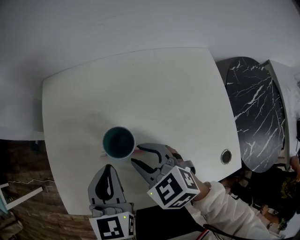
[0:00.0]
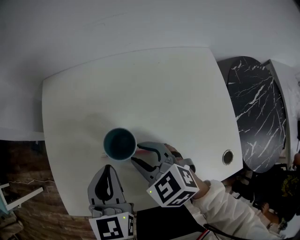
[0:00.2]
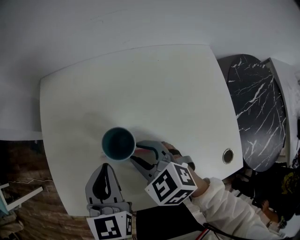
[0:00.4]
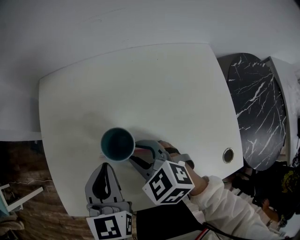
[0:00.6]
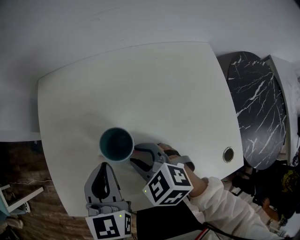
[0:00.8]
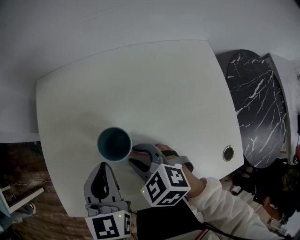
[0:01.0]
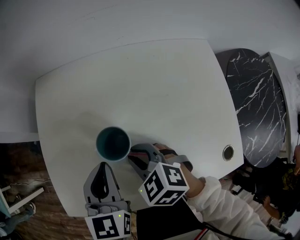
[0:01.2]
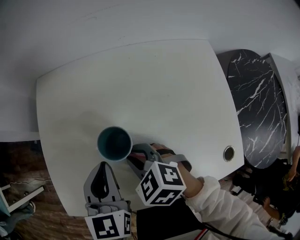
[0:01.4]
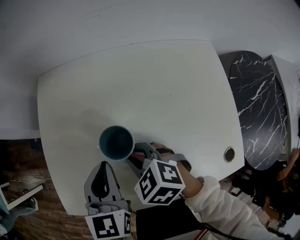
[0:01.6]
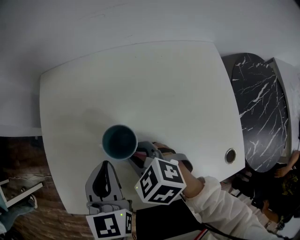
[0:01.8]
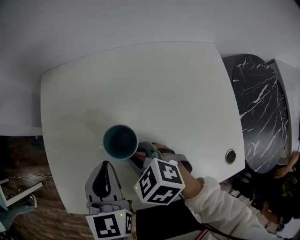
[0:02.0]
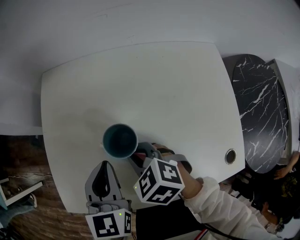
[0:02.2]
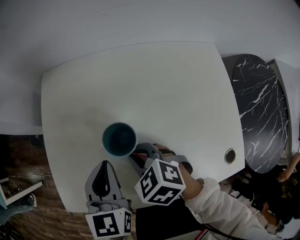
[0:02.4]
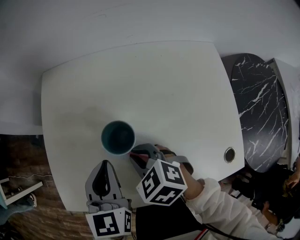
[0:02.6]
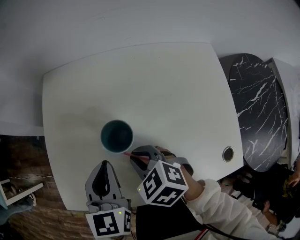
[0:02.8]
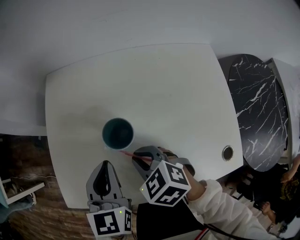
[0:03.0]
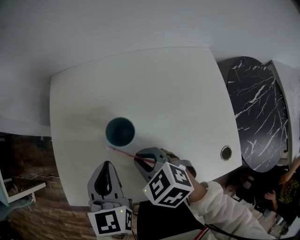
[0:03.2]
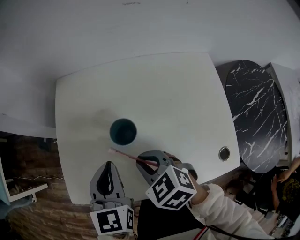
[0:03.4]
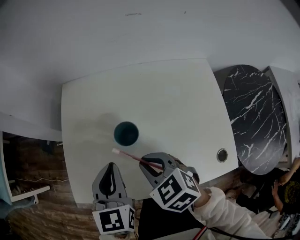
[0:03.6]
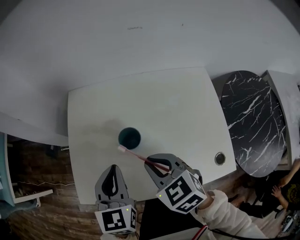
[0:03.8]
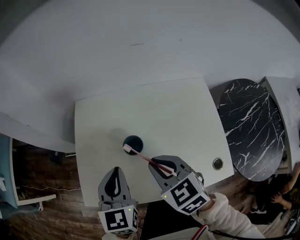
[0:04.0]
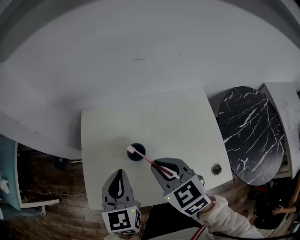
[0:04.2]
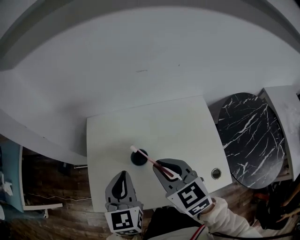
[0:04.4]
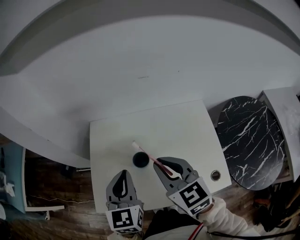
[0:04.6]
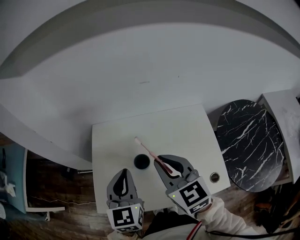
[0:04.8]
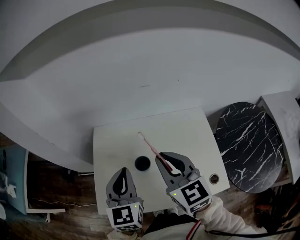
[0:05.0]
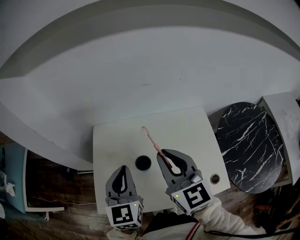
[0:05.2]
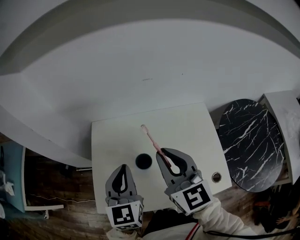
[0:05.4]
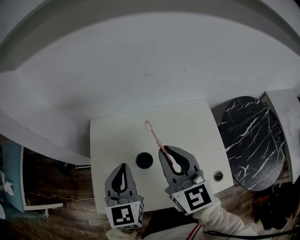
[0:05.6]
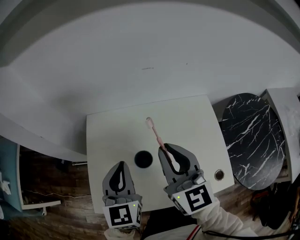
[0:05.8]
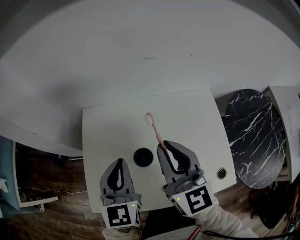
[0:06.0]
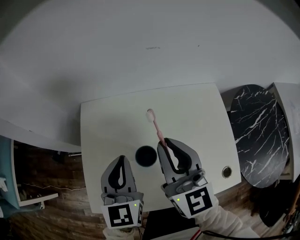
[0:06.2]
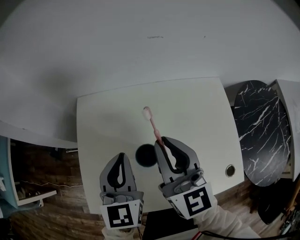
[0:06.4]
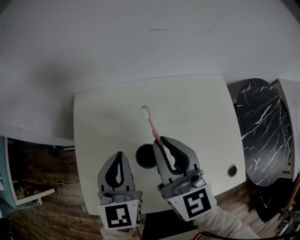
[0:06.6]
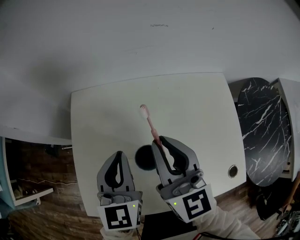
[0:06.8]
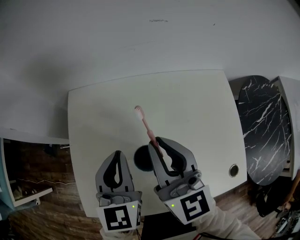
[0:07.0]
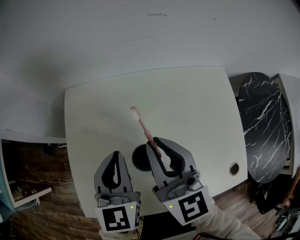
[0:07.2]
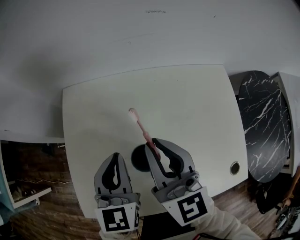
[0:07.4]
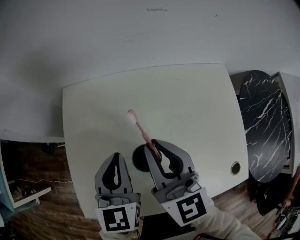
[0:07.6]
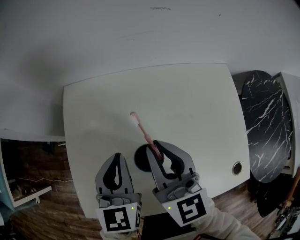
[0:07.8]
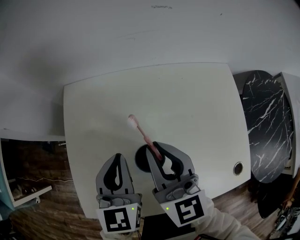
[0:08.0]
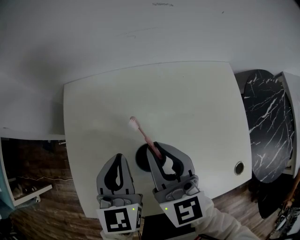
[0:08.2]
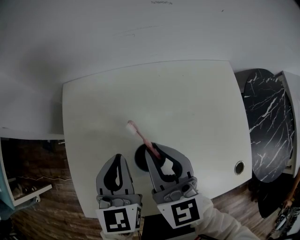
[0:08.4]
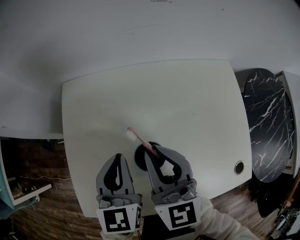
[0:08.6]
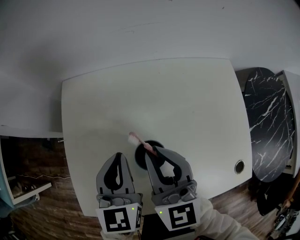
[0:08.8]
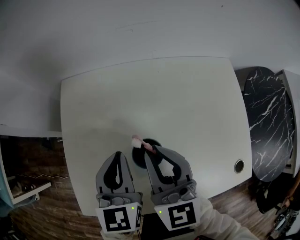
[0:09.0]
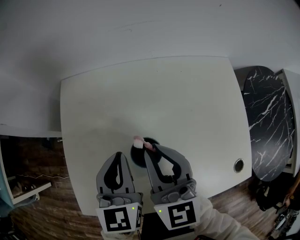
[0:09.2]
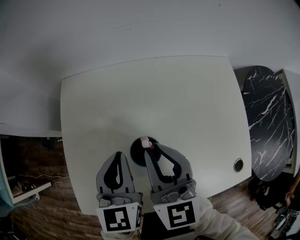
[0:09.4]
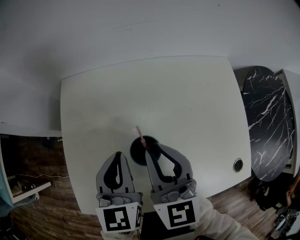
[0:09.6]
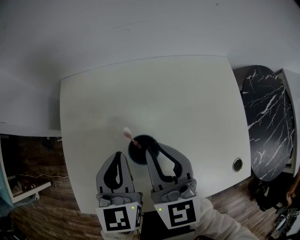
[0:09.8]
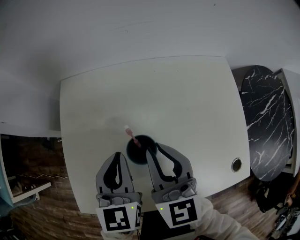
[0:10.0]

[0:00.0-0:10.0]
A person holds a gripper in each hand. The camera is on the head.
0:00.0 to 0:01.4: The right gripper changes place by some 5 cm.
0:01.4 to 0:02.8: The grippers make only small movements.
0:02.8 to 0:04.2: The grippers both shift upward by roughly 20 cm. The right gripper changes its angle by roughly 30 degrees.
0:04.2 to 0:05.8: The left gripper goes roughly 5 cm forward. Meanwhile the right gripper goes about 10 cm upward and forward, and changes its angle by some 30 degrees.
0:05.8 to 0:07.2: The right gripper is displaced downward and to the left by approximately 15 cm, while the left gripper heads downward, covering approximately 10 cm.
0:07.2 to 0:08.6: The right gripper changes place by about 5 cm.
0:08.6 to 0:10.0: The grippers move only a little.

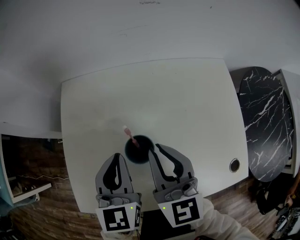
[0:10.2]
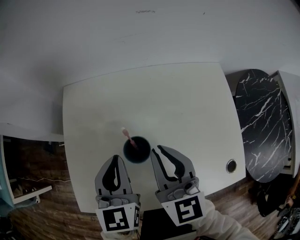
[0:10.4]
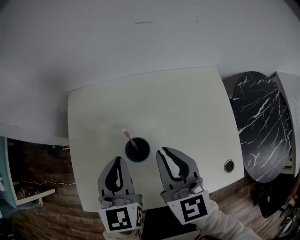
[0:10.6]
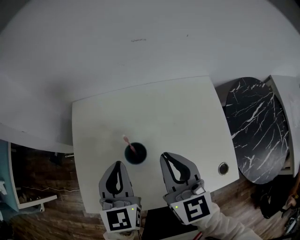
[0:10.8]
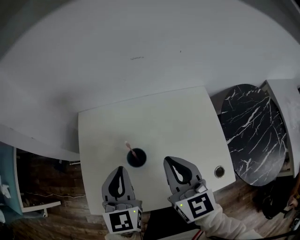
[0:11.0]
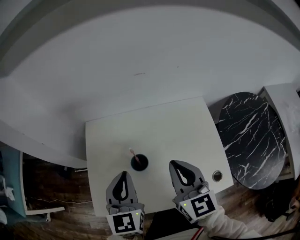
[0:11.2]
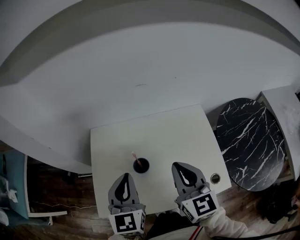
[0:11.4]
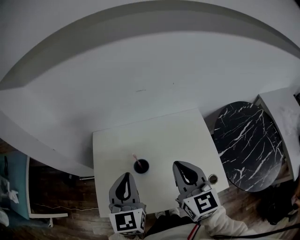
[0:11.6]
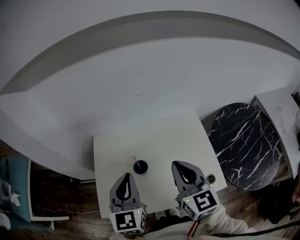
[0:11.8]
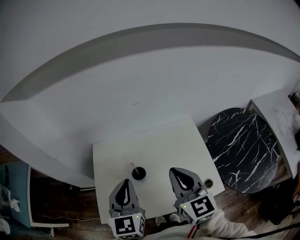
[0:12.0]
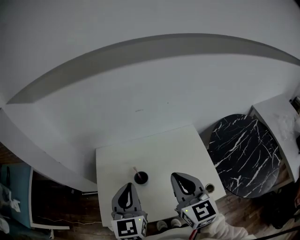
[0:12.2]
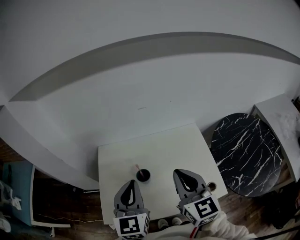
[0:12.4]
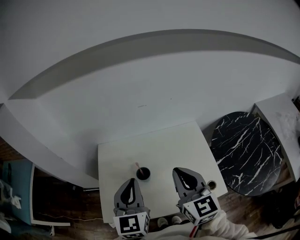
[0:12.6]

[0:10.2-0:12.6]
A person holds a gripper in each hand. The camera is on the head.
0:10.2 to 0:11.4: The left gripper heads upward, covering roughly 20 cm, while the right gripper heads upward and to the right, covering some 20 cm.
0:11.4 to 0:12.6: The two grippers go approximately 5 cm upward.

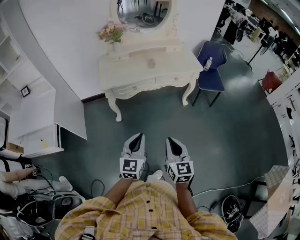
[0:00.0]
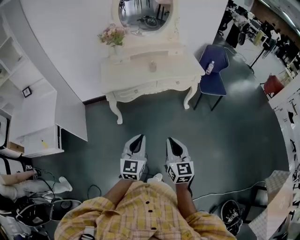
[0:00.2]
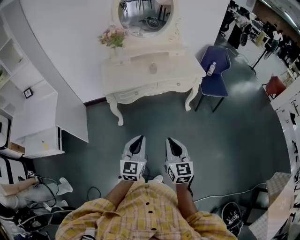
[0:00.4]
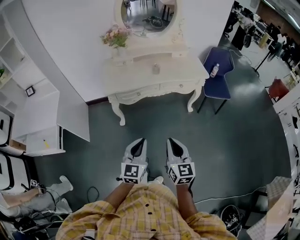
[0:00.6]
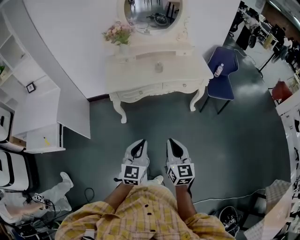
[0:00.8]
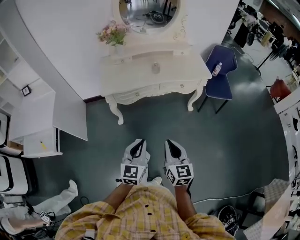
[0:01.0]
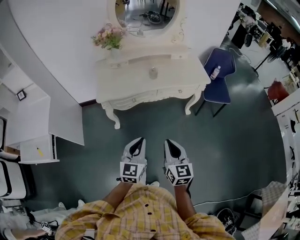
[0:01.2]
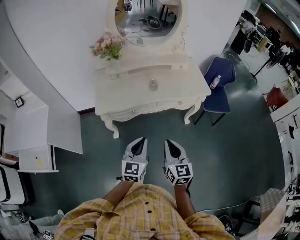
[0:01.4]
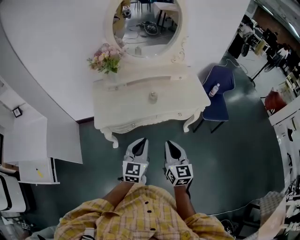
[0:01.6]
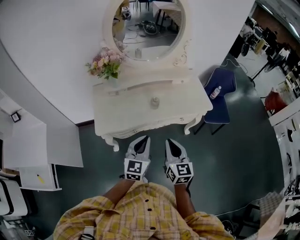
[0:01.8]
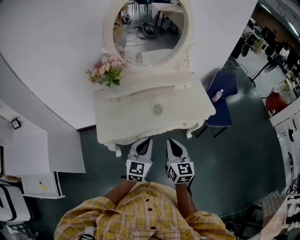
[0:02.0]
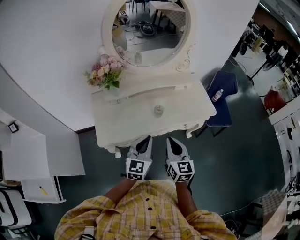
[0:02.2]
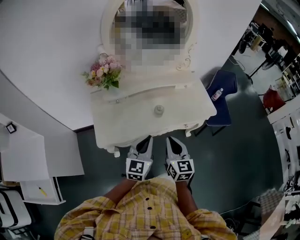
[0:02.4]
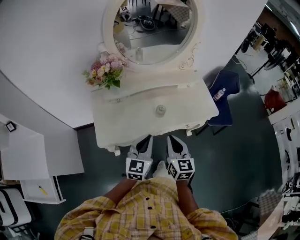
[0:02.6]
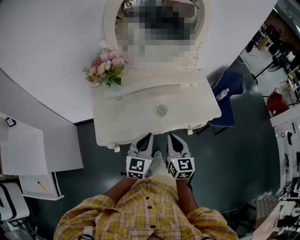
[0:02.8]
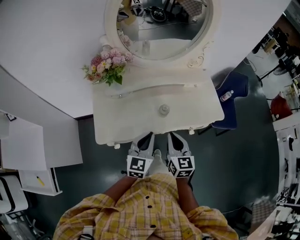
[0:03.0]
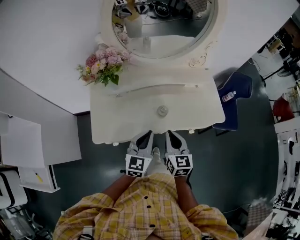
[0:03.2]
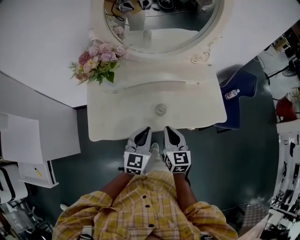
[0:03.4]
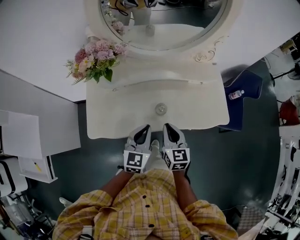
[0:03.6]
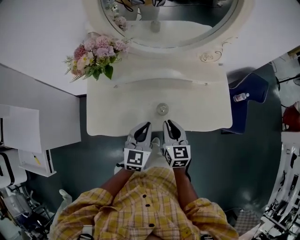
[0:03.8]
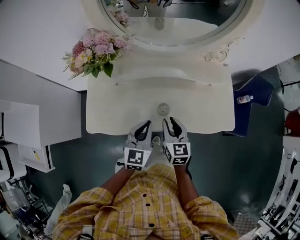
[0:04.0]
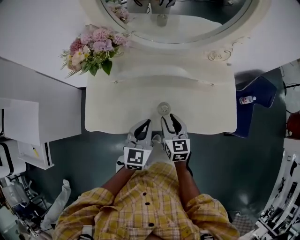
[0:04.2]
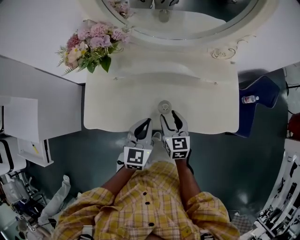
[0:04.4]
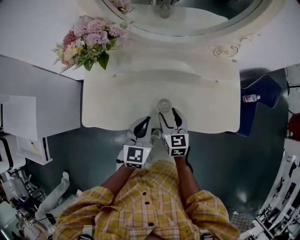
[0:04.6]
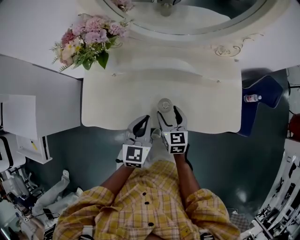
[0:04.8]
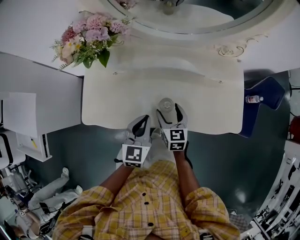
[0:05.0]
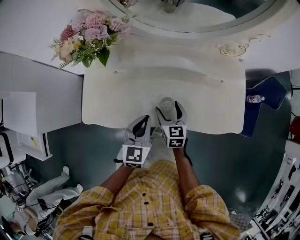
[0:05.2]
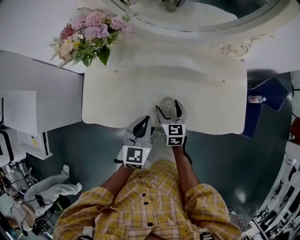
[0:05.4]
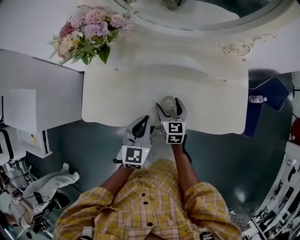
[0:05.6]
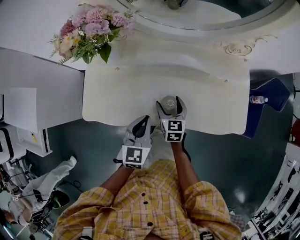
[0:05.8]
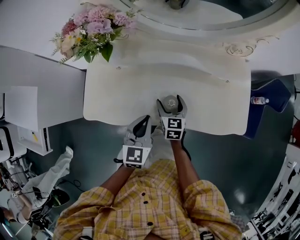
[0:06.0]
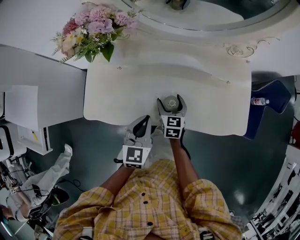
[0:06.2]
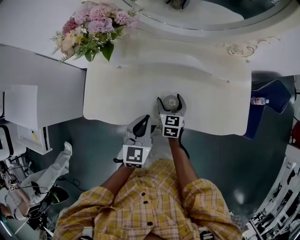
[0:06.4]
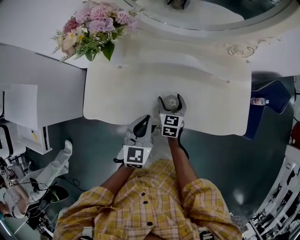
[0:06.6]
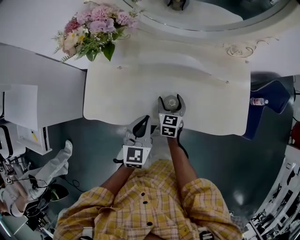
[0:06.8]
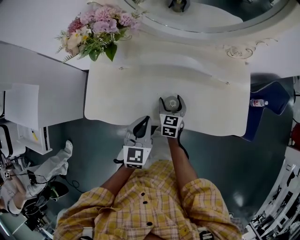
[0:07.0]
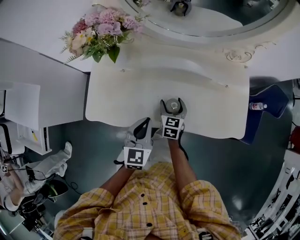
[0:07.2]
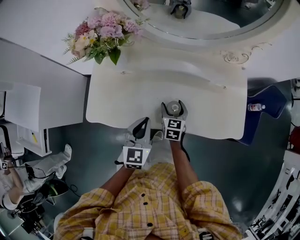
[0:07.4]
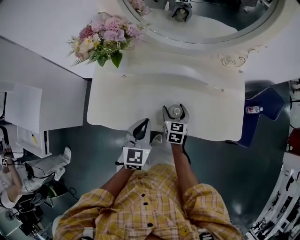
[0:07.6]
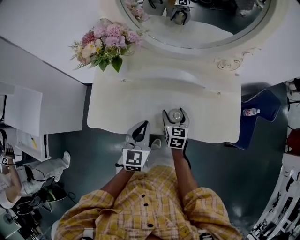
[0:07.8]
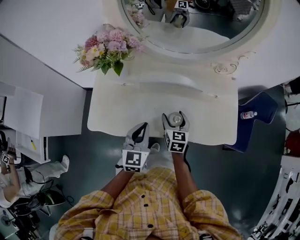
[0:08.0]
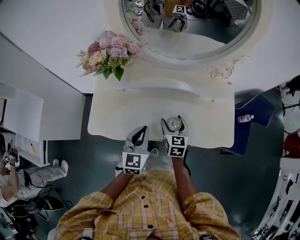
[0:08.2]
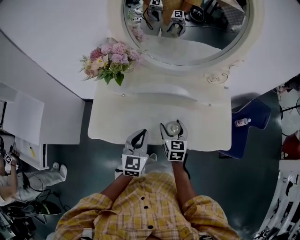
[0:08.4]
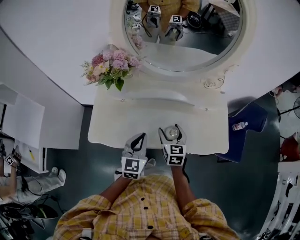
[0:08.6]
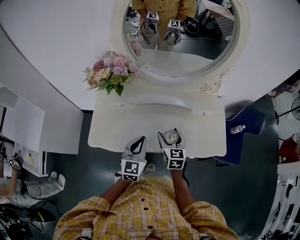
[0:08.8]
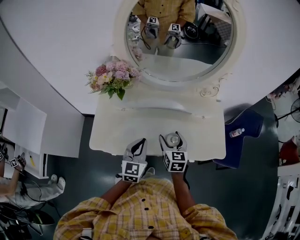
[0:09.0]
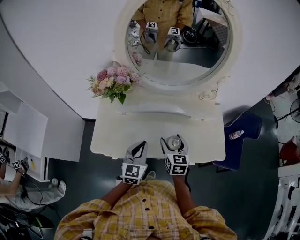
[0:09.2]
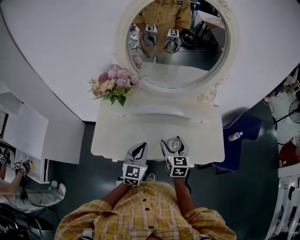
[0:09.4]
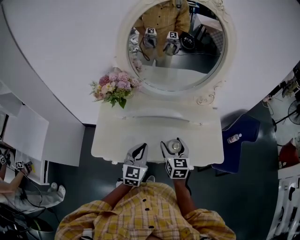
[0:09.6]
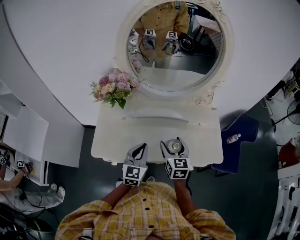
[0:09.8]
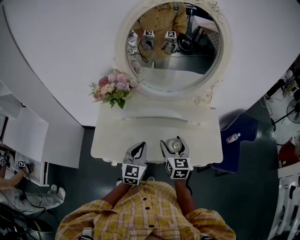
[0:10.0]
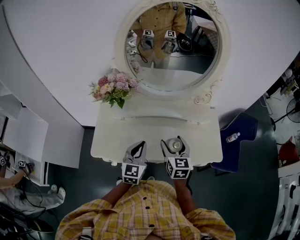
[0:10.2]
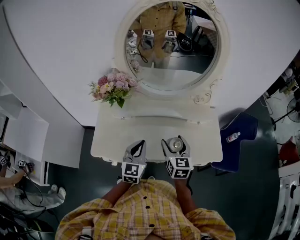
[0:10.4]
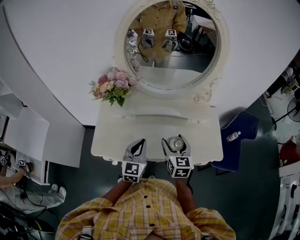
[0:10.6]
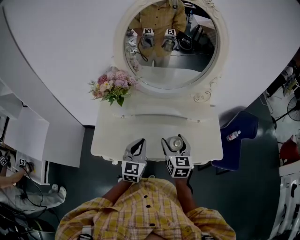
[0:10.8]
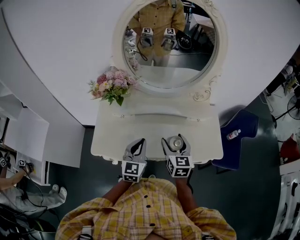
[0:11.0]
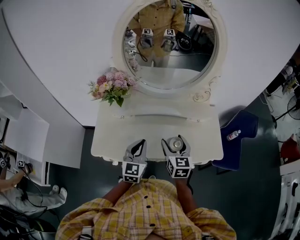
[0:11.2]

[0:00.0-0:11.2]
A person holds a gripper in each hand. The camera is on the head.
0:00.0 to 0:01.6: Both grippers travel together forward, roughly 30 cm.
0:01.6 to 0:03.2: The grippers both shift forward by approximately 25 cm.
0:03.2 to 0:04.8: The right gripper heads downward and forward, covering some 20 cm, and opens. The left gripper travels downward and forward by about 10 cm.
0:04.8 to 0:06.4: The right gripper moves downward, roughly 5 cm.
0:06.4 to 0:08.0: The right gripper is displaced upward by approximately 5 cm; the left gripper ends up roughly 5 cm from where it was.
0:08.0 to 0:09.6: The right gripper is displaced upward by approximately 15 cm, while the left gripper shifts some 5 cm upward.
0:09.6 to 0:11.2: The grippers make only small movements.
